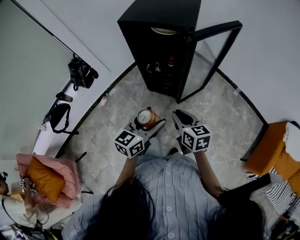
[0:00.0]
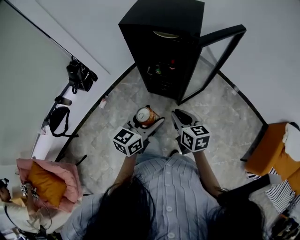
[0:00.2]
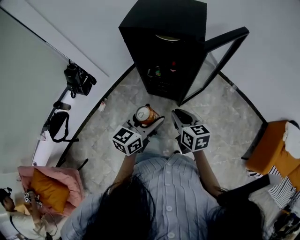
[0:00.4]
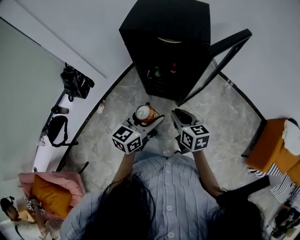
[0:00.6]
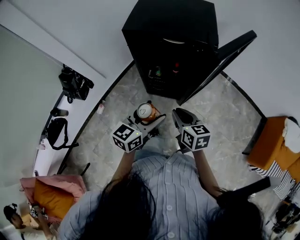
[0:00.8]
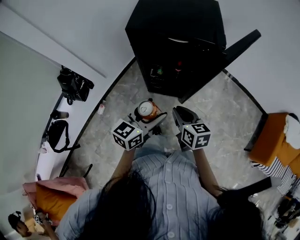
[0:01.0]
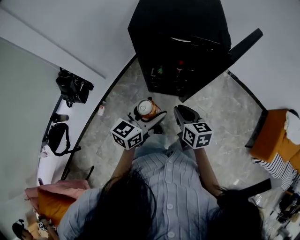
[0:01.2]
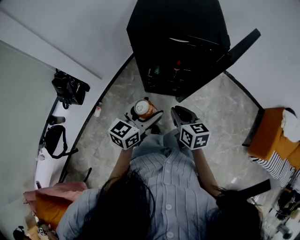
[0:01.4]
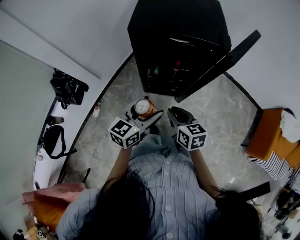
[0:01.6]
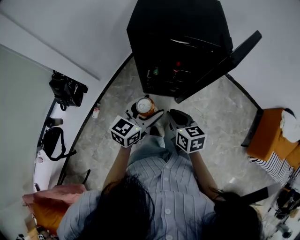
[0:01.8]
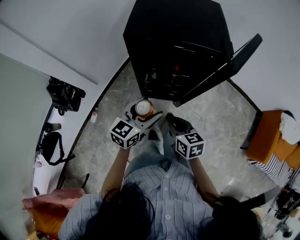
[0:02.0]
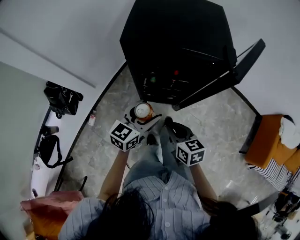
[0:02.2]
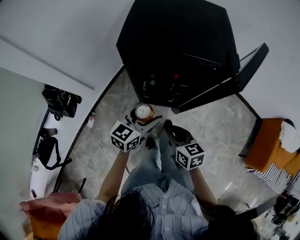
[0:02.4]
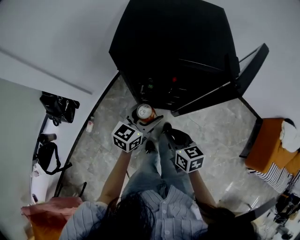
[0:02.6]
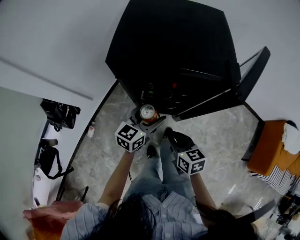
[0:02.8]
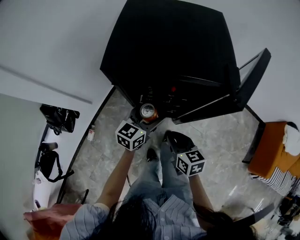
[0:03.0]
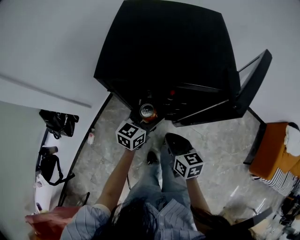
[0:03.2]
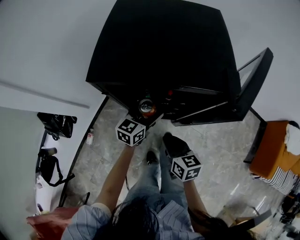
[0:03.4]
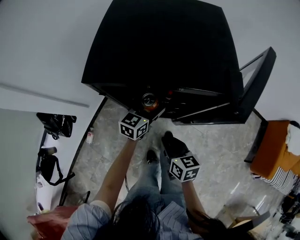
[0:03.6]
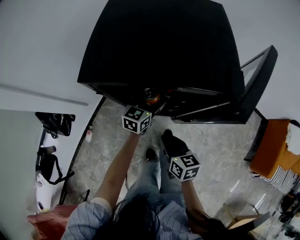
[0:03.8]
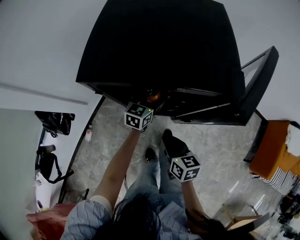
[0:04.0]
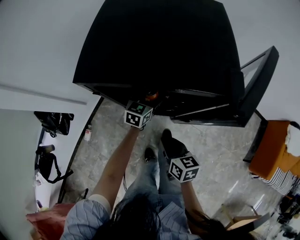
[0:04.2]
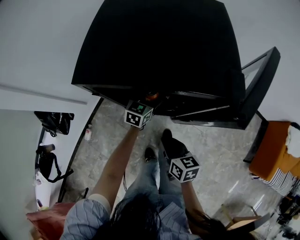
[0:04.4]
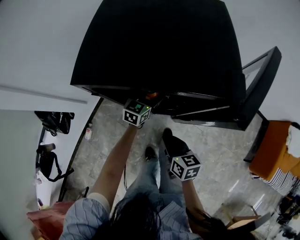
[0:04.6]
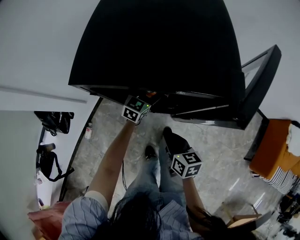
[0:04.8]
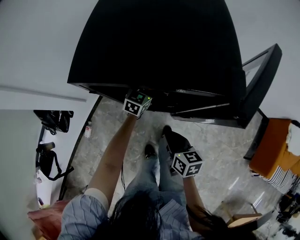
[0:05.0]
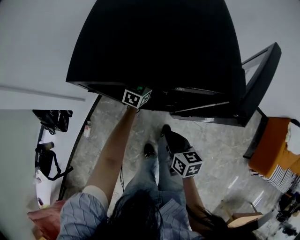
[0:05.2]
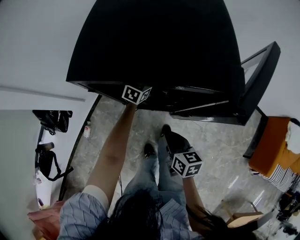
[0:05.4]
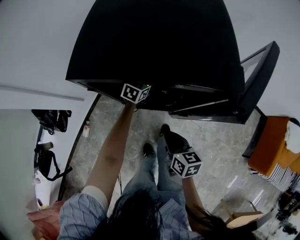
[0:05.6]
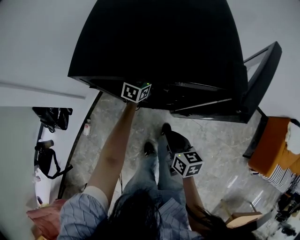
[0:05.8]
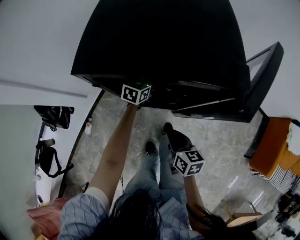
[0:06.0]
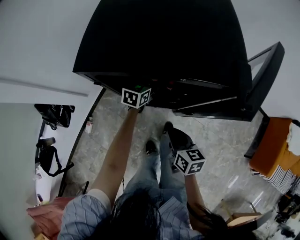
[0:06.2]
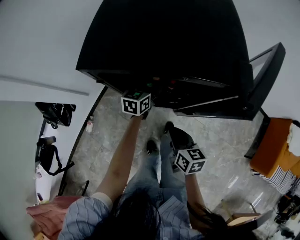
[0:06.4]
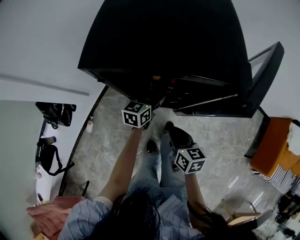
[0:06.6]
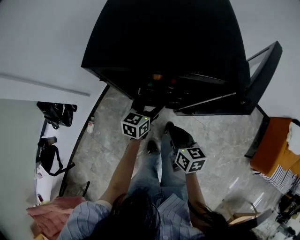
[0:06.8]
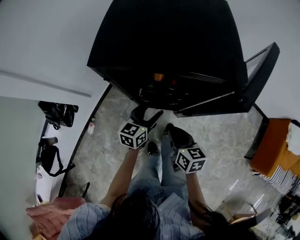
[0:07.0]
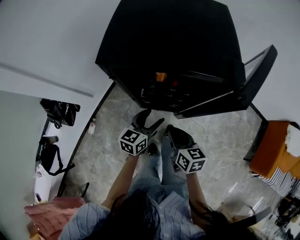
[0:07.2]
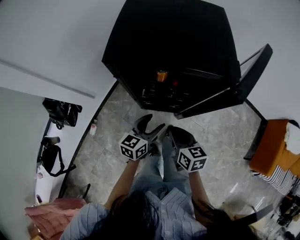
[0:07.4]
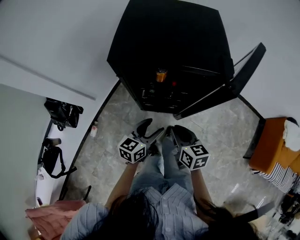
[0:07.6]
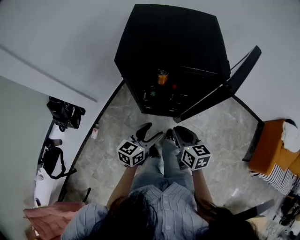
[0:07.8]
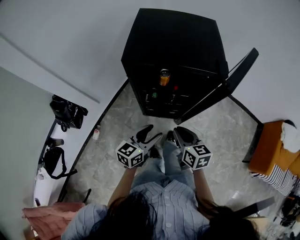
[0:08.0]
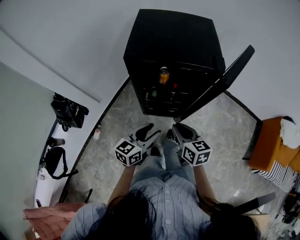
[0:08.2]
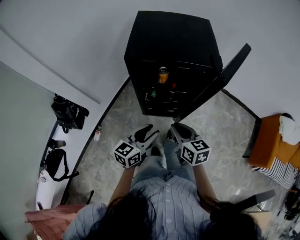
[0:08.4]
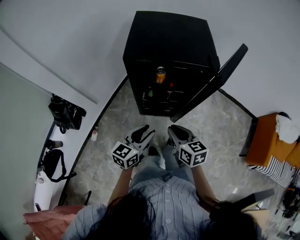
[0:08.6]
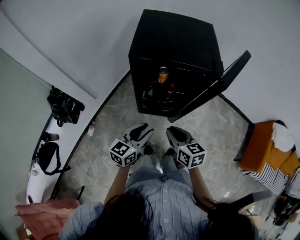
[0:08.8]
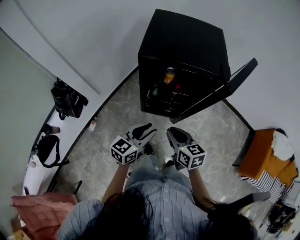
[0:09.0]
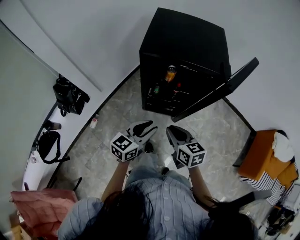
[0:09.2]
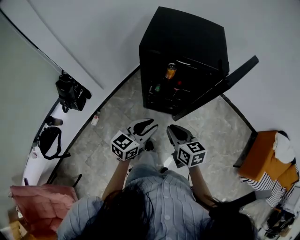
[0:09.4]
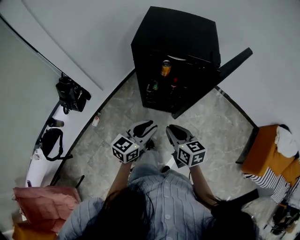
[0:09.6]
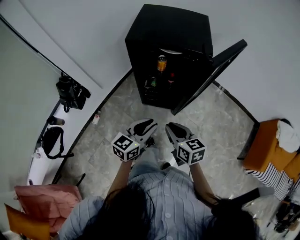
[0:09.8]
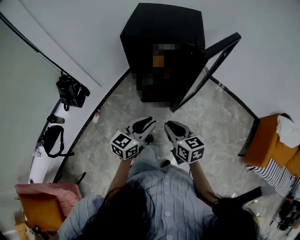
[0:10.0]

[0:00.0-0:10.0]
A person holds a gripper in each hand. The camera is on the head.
0:00.0 to 0:01.4: Both grippers travel together to the left and forward, about 25 cm.
0:01.4 to 0:02.8: The right gripper is displaced downward and forward by some 10 cm. Meanwhile the left gripper moves forward and downward, about 20 cm.
0:02.8 to 0:04.2: The right gripper shifts by approximately 5 cm; the left gripper is displaced forward and downward by about 20 cm.
0:04.2 to 0:05.8: The left gripper travels forward by approximately 5 cm.
0:05.8 to 0:07.2: The left gripper travels backward by about 20 cm.
0:07.2 to 0:08.6: The left gripper heads backward and upward, covering approximately 20 cm, and closes. Meanwhile the right gripper goes roughly 15 cm upward and backward.
0:08.6 to 0:10.0: The two grippers go about 15 cm backward and to the right.

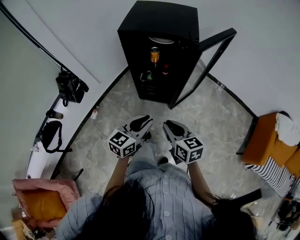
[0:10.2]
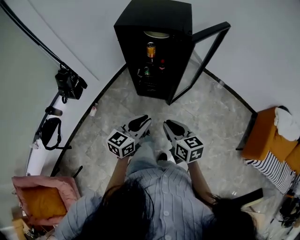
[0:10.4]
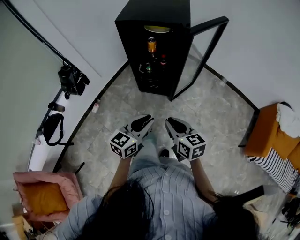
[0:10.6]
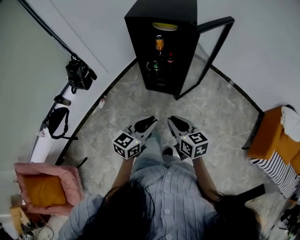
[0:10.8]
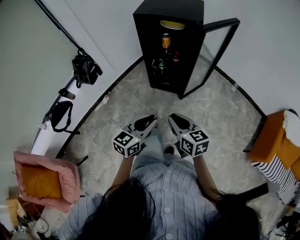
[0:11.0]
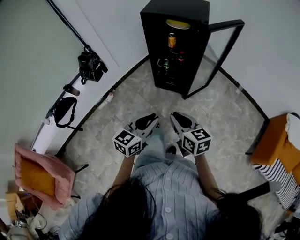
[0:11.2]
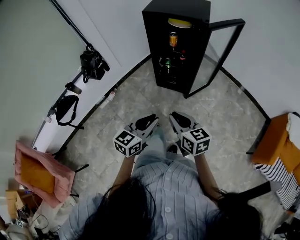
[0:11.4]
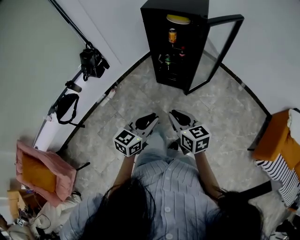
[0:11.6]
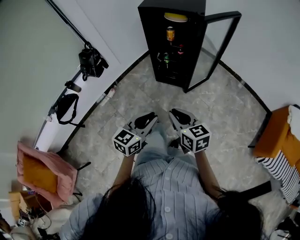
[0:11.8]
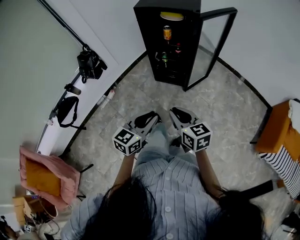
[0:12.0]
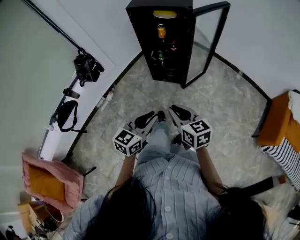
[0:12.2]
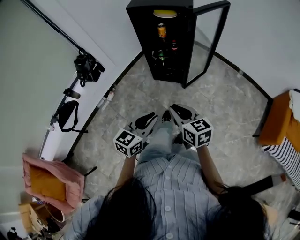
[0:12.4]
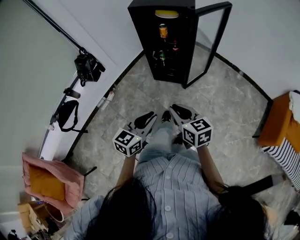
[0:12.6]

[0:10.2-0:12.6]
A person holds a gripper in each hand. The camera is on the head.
0:10.2 to 0:11.4: Both grippers move backward, roughly 15 cm.
0:11.4 to 0:12.6: There are only small adjustments of the grippers.

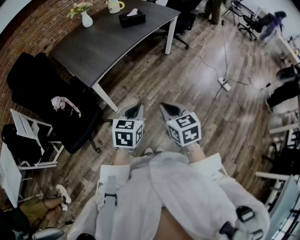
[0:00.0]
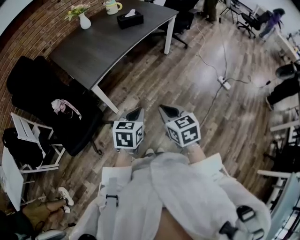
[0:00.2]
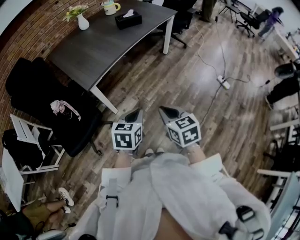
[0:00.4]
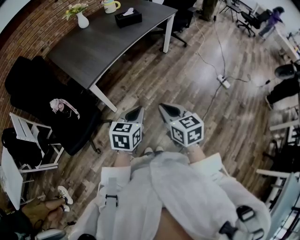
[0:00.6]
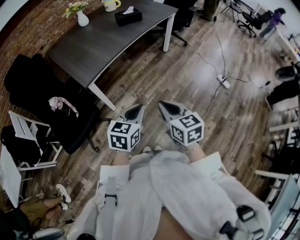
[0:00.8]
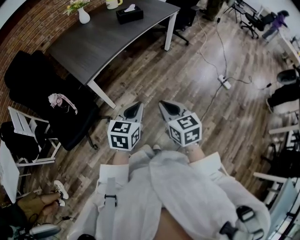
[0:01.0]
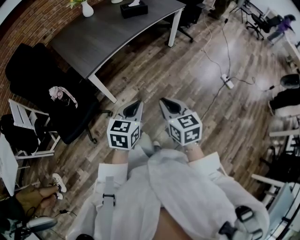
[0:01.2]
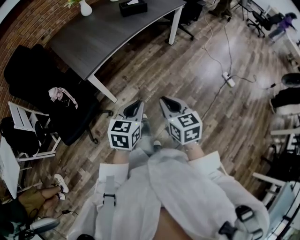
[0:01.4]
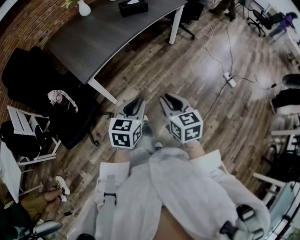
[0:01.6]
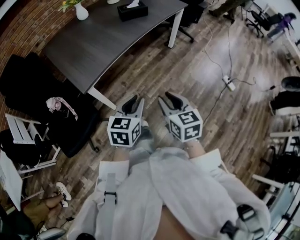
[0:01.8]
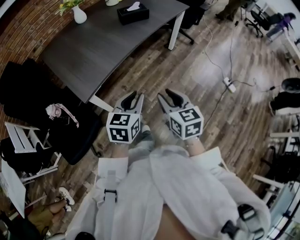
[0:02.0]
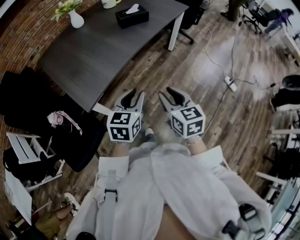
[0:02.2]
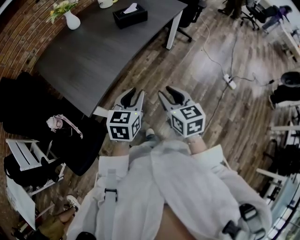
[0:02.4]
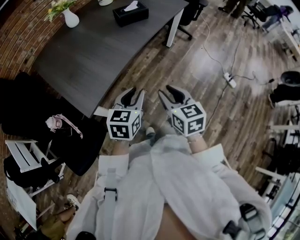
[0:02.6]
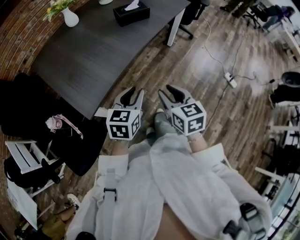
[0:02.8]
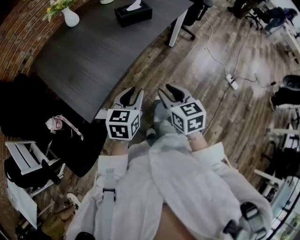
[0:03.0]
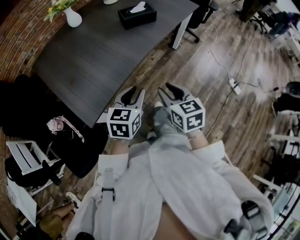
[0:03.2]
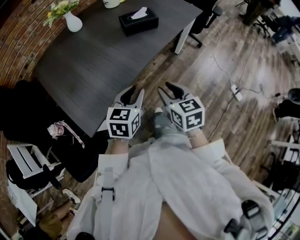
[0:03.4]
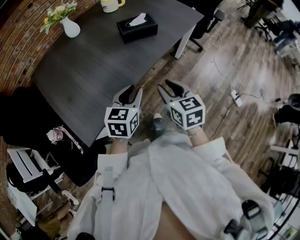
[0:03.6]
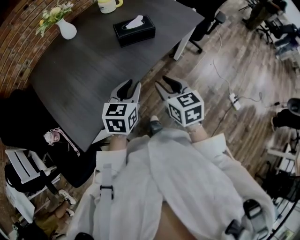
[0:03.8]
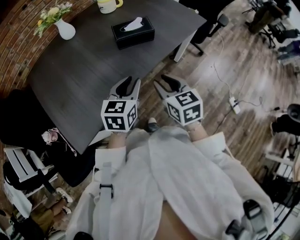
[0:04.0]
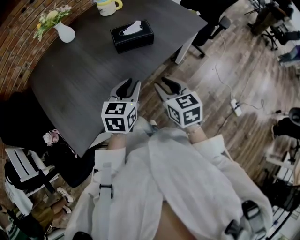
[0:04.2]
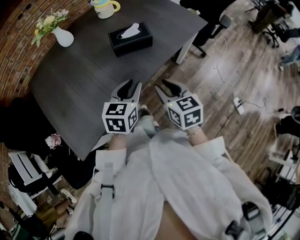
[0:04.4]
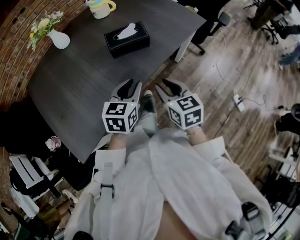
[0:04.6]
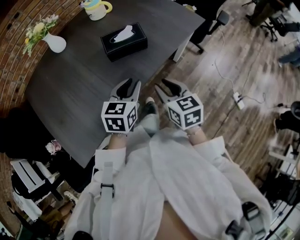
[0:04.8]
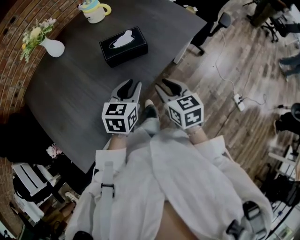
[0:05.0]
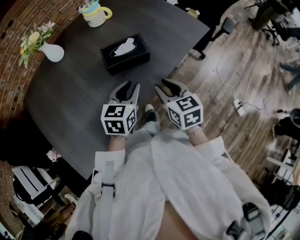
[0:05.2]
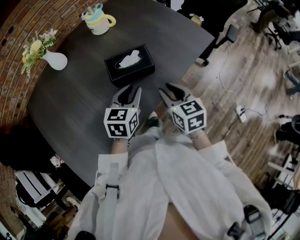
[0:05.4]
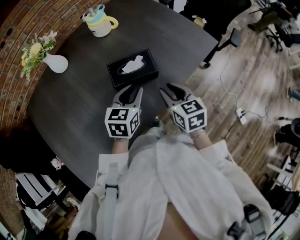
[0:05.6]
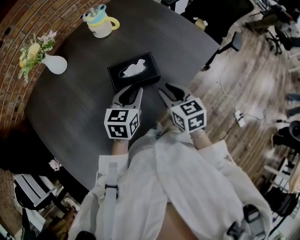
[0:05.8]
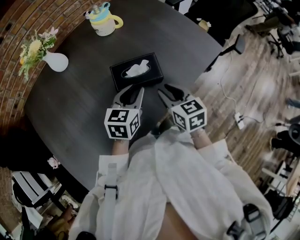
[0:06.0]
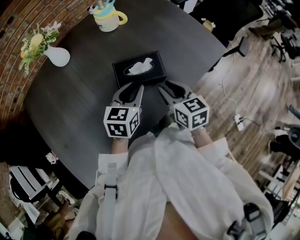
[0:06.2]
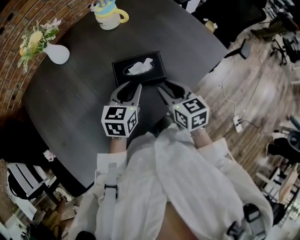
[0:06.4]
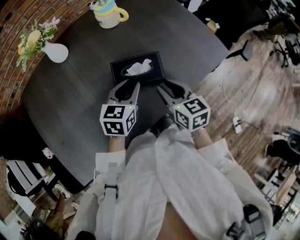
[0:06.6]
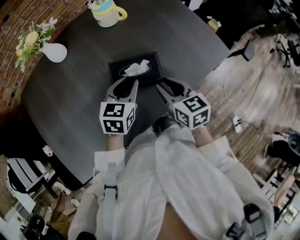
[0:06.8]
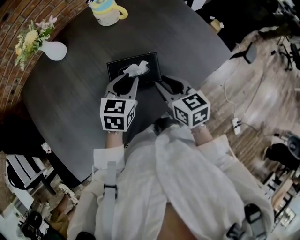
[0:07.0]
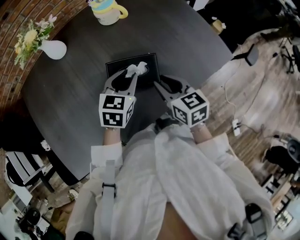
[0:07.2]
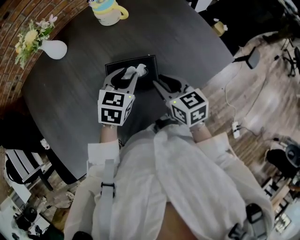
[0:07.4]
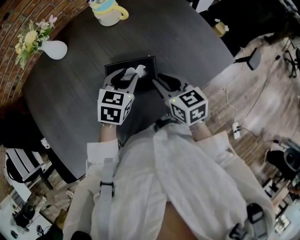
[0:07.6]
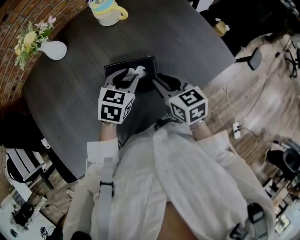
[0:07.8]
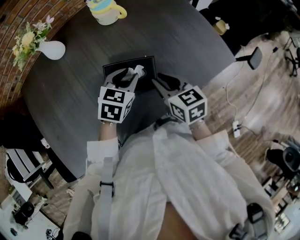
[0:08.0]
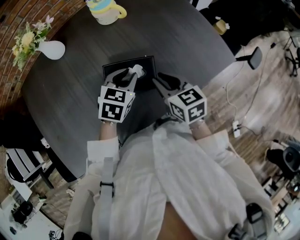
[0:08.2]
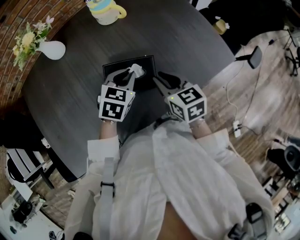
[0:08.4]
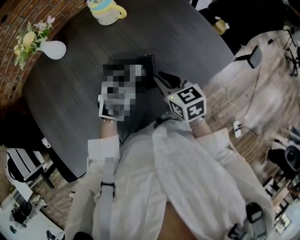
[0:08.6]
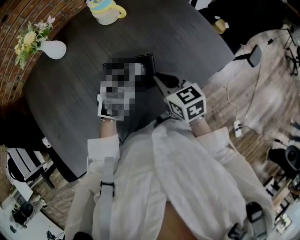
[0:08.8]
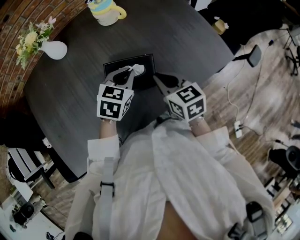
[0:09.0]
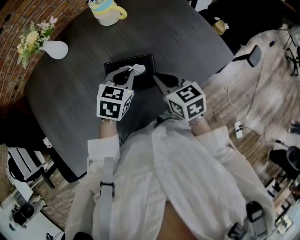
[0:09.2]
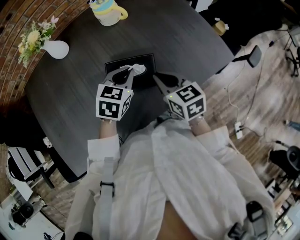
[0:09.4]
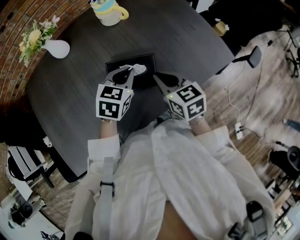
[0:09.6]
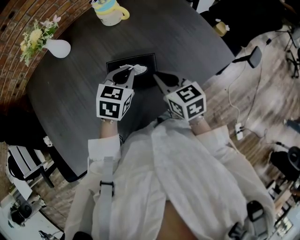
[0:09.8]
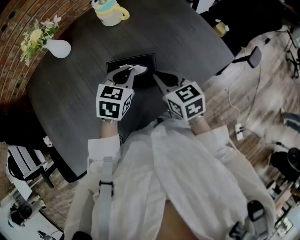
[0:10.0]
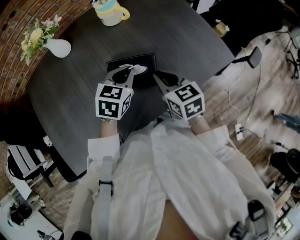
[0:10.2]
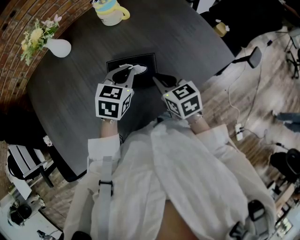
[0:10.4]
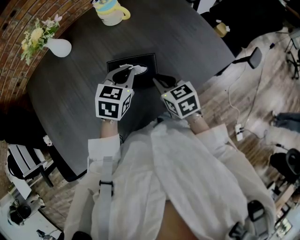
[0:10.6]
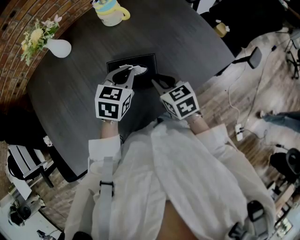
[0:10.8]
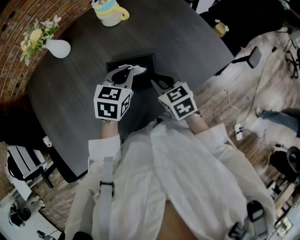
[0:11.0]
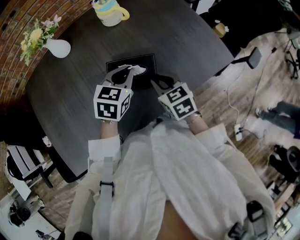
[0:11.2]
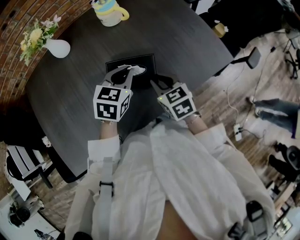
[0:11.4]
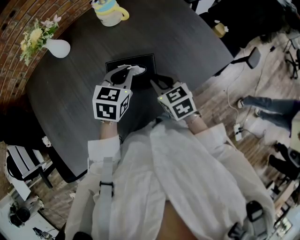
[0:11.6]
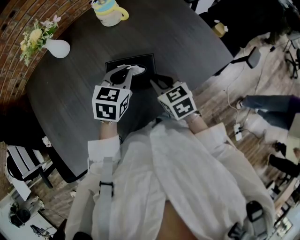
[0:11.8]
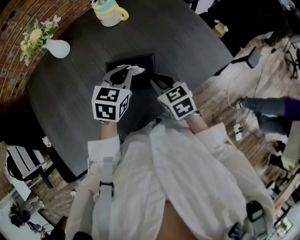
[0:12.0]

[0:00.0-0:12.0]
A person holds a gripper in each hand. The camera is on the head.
0:00.0 to 0:01.6: Both grippers move forward, some 5 cm.
0:01.6 to 0:03.0: Both grippers move forward, about 25 cm.
0:03.0 to 0:04.4: Both grippers move forward, roughly 30 cm.
0:04.4 to 0:06.0: Both grippers travel together forward, some 25 cm.
0:06.0 to 0:07.6: Both grippers travel together forward, roughly 10 cm.
0:07.6 to 0:09.0: The left gripper closes up.
0:09.0 to 0:12.0: The grippers stay close to where they were, moving slightly.
